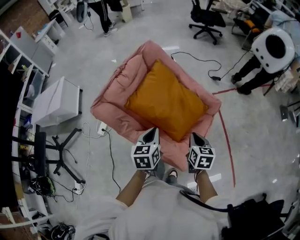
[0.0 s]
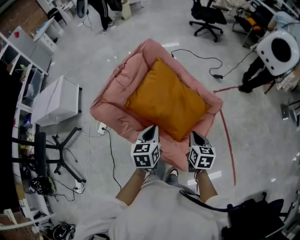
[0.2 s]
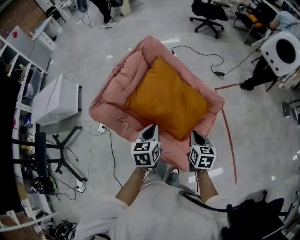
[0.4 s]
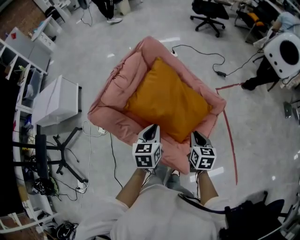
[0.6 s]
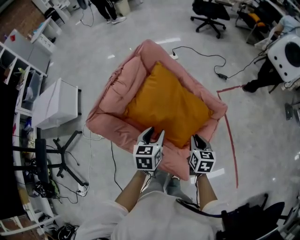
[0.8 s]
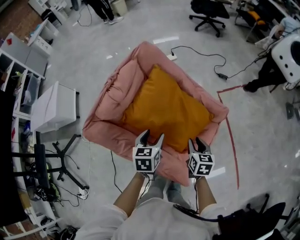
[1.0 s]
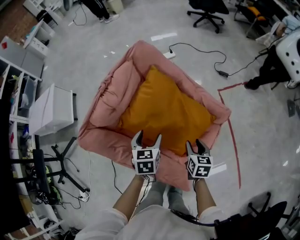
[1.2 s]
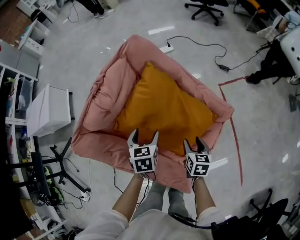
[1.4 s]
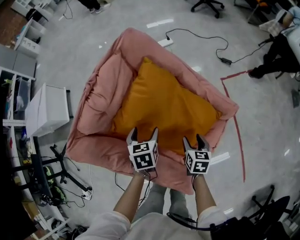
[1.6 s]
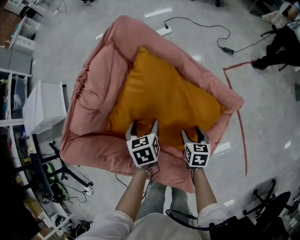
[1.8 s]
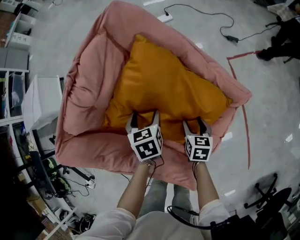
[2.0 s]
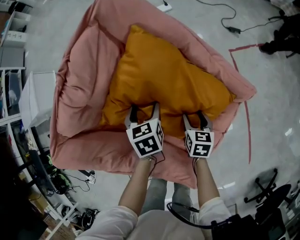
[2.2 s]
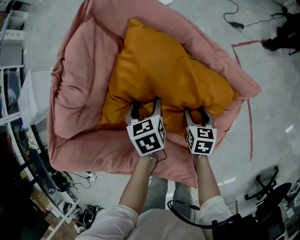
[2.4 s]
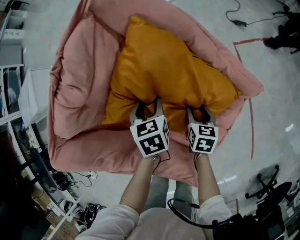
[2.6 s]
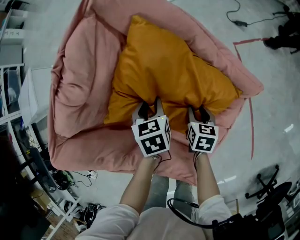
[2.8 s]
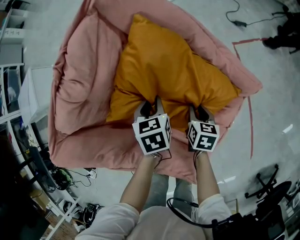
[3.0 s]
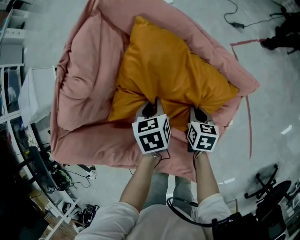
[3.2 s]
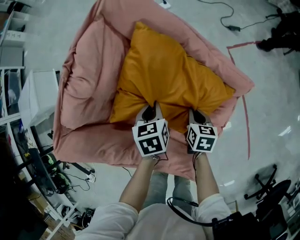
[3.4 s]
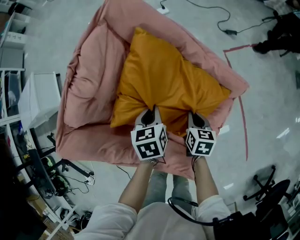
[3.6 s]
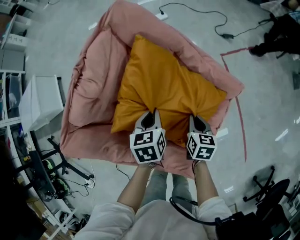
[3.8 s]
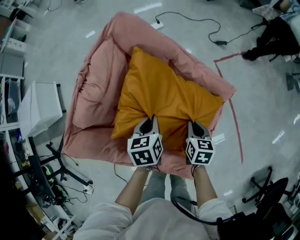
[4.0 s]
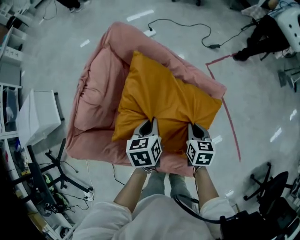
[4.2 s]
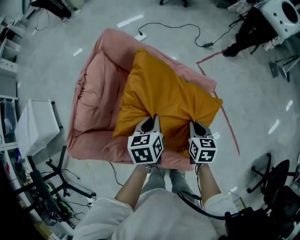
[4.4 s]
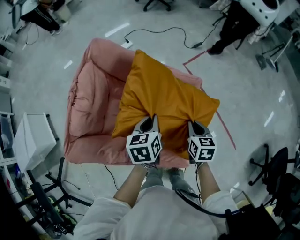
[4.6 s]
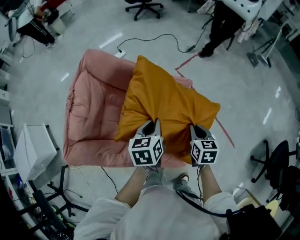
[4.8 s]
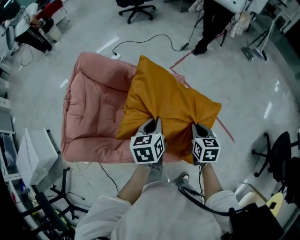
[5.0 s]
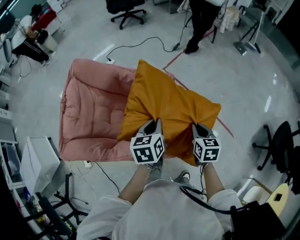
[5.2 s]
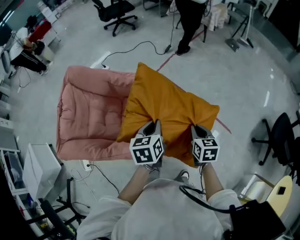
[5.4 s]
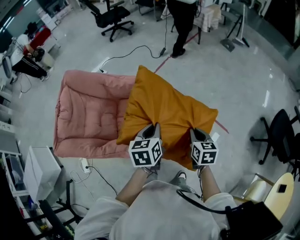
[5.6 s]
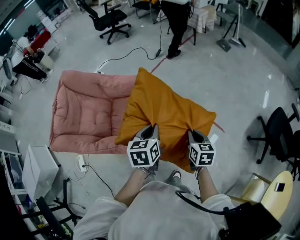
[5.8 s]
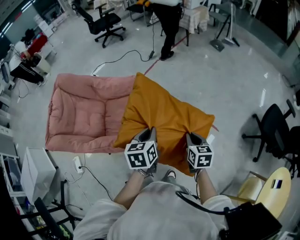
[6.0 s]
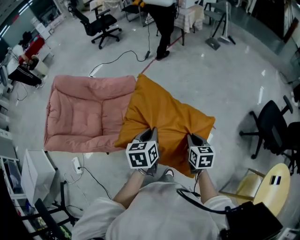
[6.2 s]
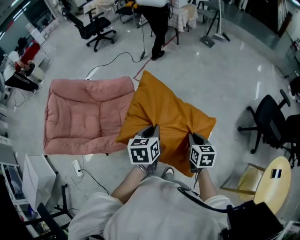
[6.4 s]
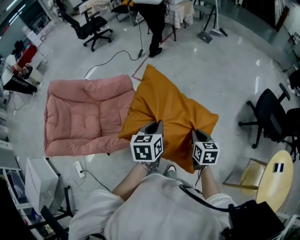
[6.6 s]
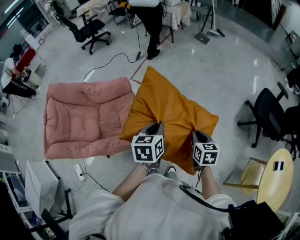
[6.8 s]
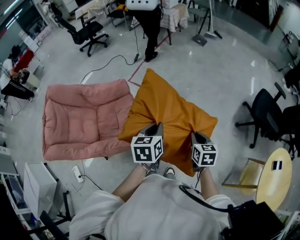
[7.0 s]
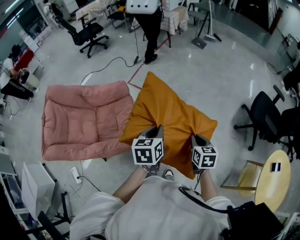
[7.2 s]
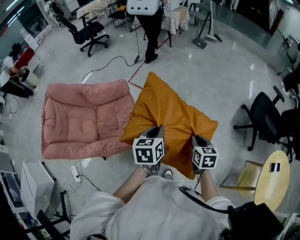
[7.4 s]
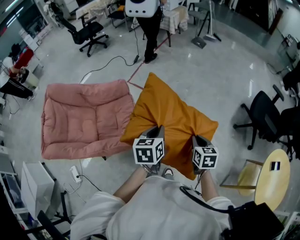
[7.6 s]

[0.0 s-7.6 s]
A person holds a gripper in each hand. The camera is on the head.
0.0 to 1.6 s: The left gripper heads forward and downward, covering about 25 cm, rotates roughly 20 degrees, and opens up, while the right gripper moves downward and forward, about 25 cm, and opens.
1.6 to 3.0 s: The grippers both shift downward and forward by about 10 cm. The right gripper closes its fingers, while the left gripper closes up.
3.0 to 4.6 s: The two grippers go about 20 cm upward. The left gripper changes its angle by roughly 30 degrees.
4.6 to 6.0 s: Both grippers are carried to the right and backward, approximately 40 cm. The left gripper turns by roughly 20 degrees.
6.0 to 7.6 s: The left gripper heads to the right, covering about 10 cm. The right gripper goes approximately 10 cm to the right and backward.

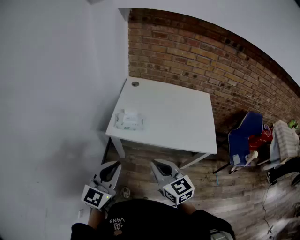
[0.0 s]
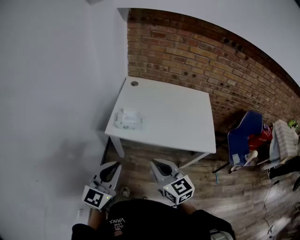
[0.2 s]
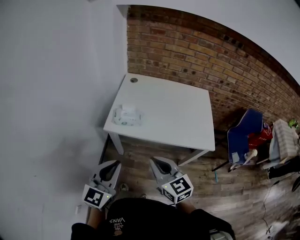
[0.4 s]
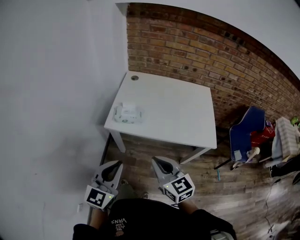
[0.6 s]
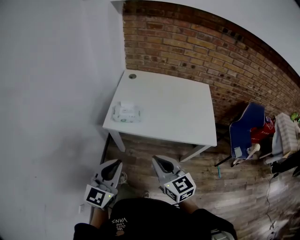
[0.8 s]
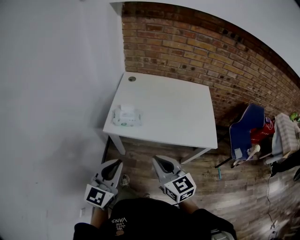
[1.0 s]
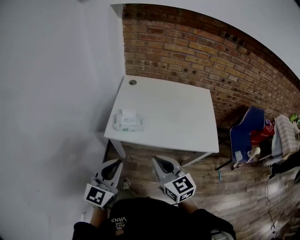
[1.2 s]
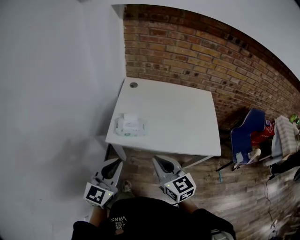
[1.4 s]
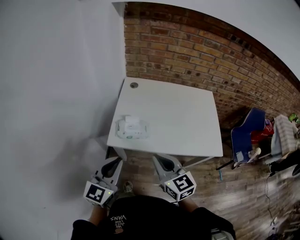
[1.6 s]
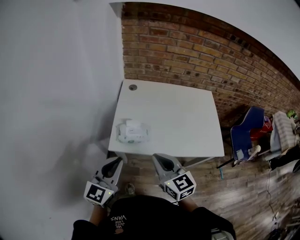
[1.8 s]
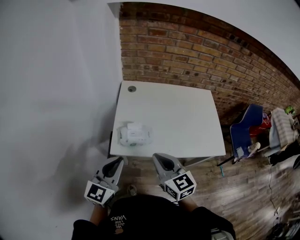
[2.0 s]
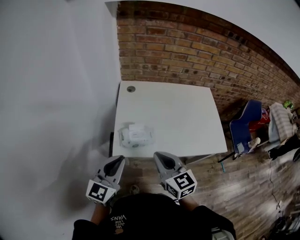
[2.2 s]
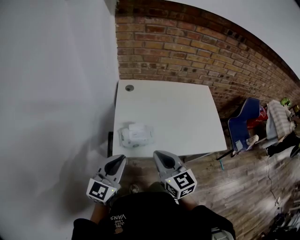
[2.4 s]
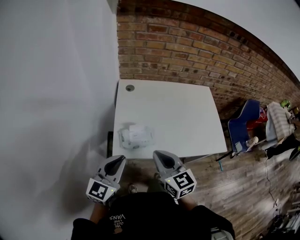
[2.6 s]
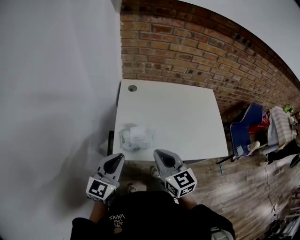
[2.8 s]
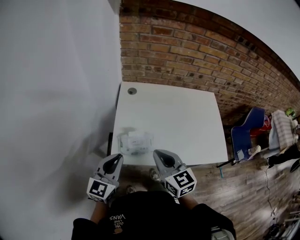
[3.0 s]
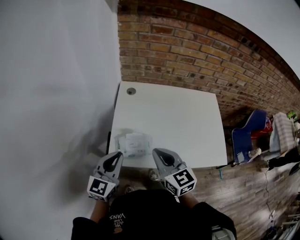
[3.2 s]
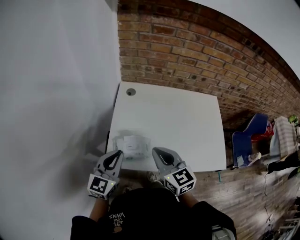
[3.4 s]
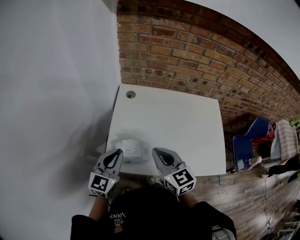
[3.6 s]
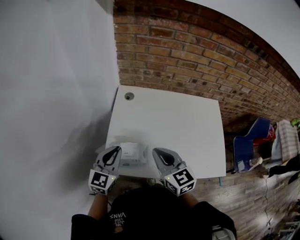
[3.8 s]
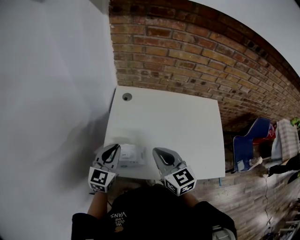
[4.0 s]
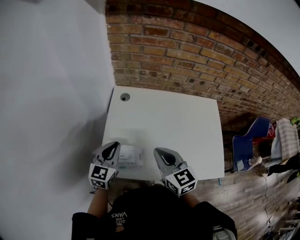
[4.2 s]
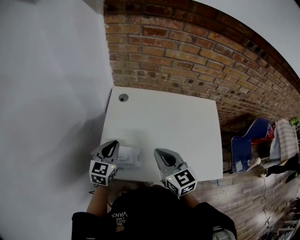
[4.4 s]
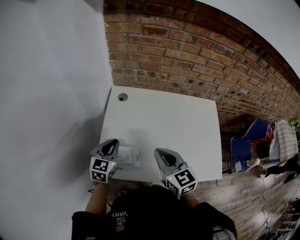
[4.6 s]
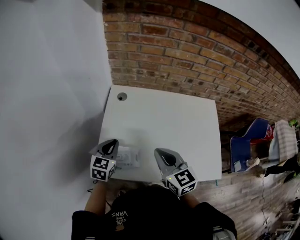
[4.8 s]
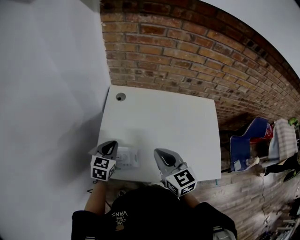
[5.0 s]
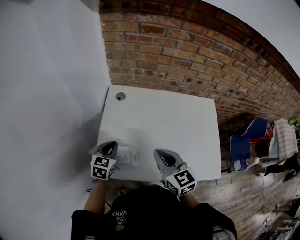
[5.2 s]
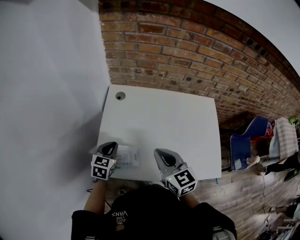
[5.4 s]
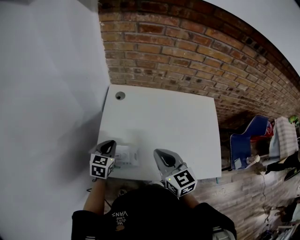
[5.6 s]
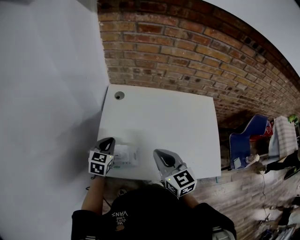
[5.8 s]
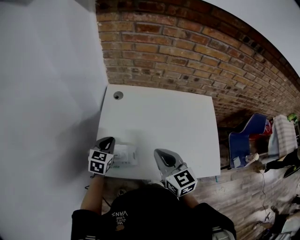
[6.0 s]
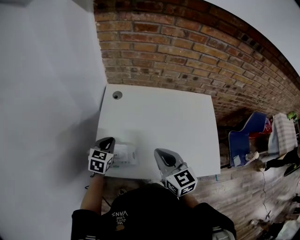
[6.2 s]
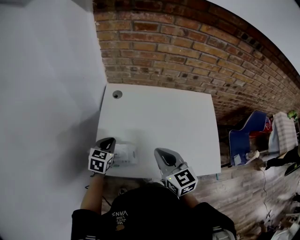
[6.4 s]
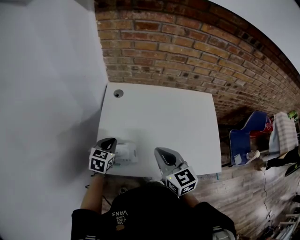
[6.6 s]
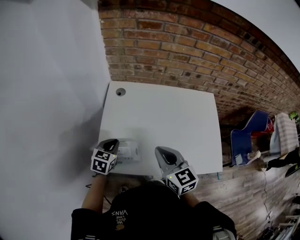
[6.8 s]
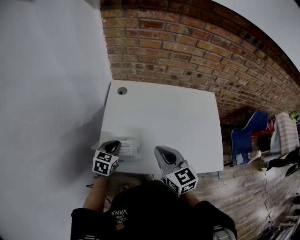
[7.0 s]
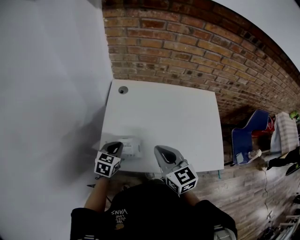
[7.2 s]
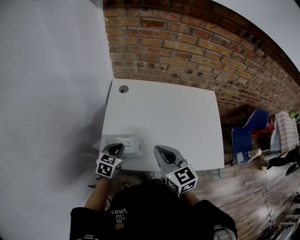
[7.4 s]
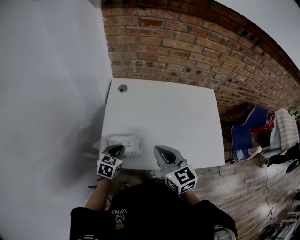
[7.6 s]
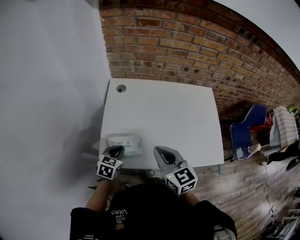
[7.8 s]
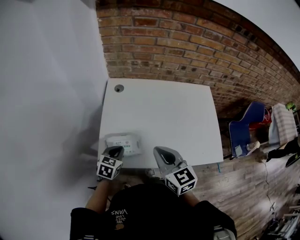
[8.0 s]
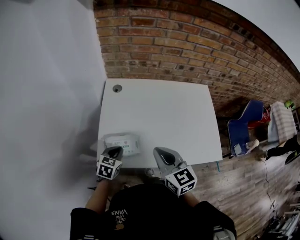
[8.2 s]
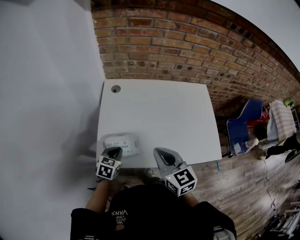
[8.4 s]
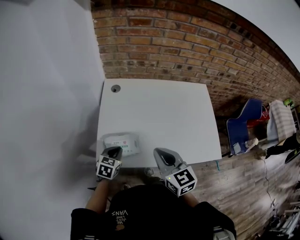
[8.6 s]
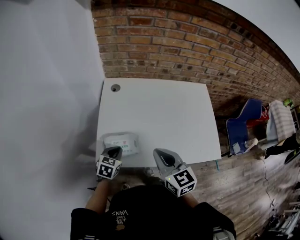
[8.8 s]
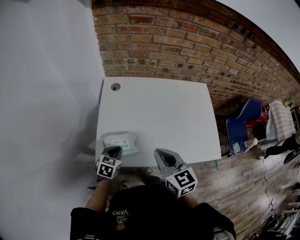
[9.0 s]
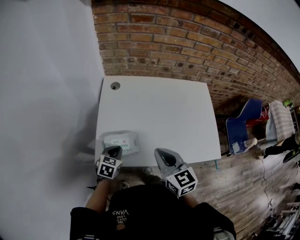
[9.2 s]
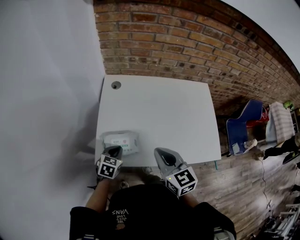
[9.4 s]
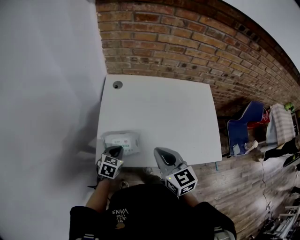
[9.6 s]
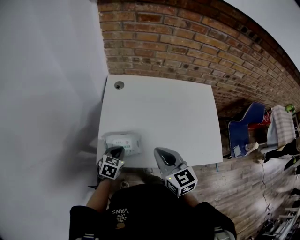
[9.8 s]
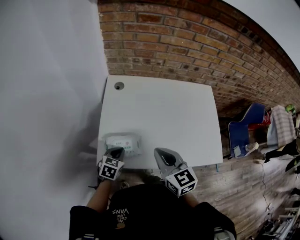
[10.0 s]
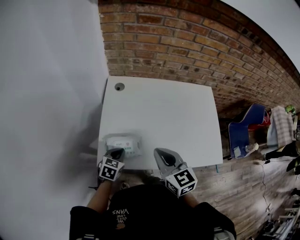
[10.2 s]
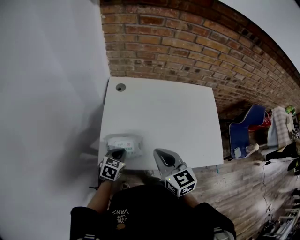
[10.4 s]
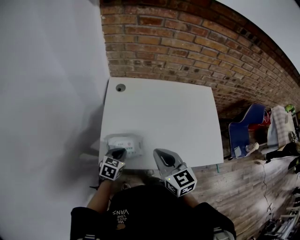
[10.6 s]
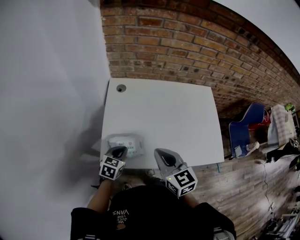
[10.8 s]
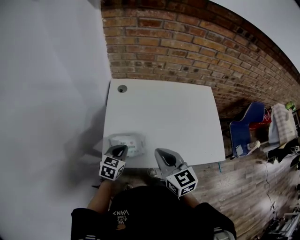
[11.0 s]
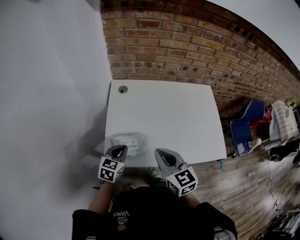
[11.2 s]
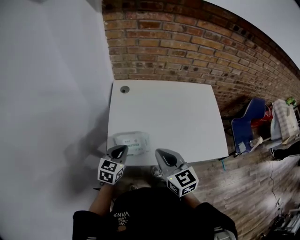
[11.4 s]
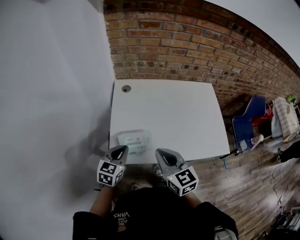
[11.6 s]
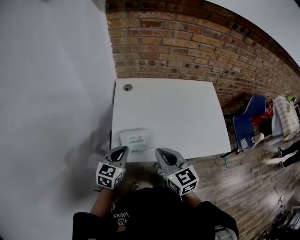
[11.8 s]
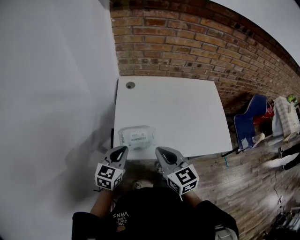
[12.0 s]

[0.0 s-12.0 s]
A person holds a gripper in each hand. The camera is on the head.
0.0 to 1.6 s: The two grippers go about 10 cm forward.
1.6 to 3.0 s: The left gripper goes roughly 15 cm forward and to the left; the right gripper heads forward, covering some 15 cm.
3.0 to 4.4 s: The left gripper shifts some 20 cm forward and downward. The right gripper moves forward and to the right, approximately 15 cm.
4.4 to 6.0 s: The left gripper is displaced downward by about 5 cm.
6.0 to 7.6 s: The right gripper changes place by some 5 cm. Meanwhile the left gripper heads backward, covering about 10 cm.
7.6 to 10.4 s: The grippers make only small movements.
10.4 to 12.0 s: The left gripper travels upward, to the left and backward by about 15 cm, and rotates about 20 degrees. The right gripper shifts roughly 10 cm backward and to the left.

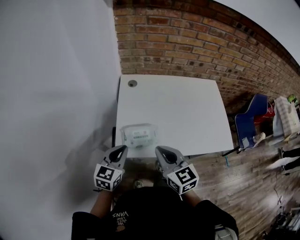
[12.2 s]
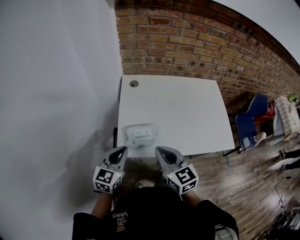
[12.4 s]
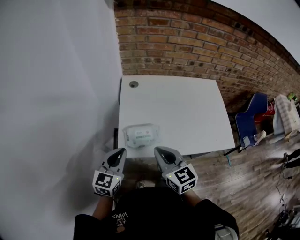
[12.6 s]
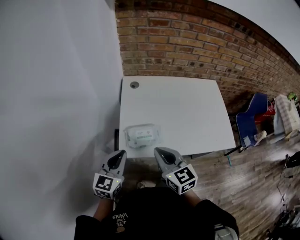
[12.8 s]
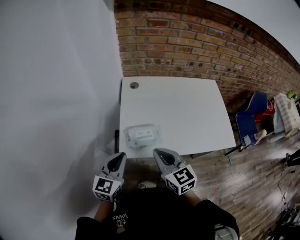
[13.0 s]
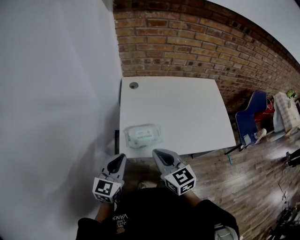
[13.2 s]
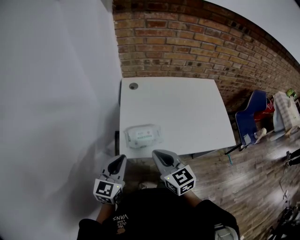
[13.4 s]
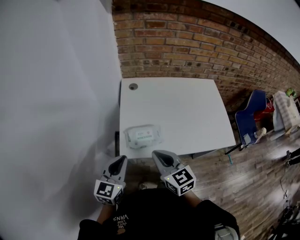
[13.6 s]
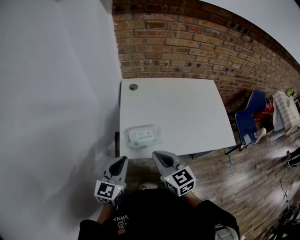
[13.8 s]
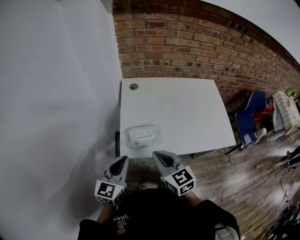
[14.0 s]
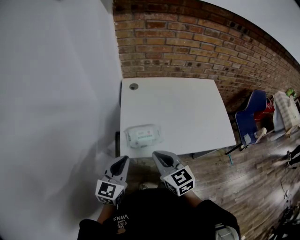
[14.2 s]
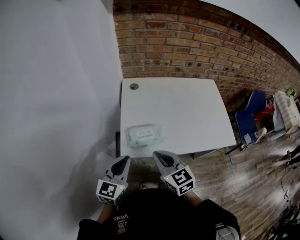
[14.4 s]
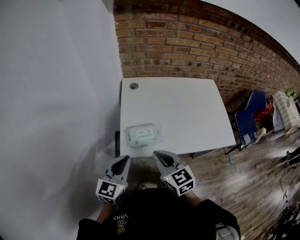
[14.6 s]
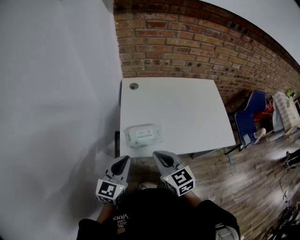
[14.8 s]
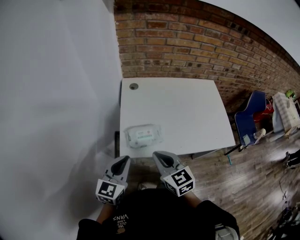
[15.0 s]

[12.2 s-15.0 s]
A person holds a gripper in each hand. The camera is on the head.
12.2 to 13.6 s: The left gripper is displaced backward by about 5 cm.
13.6 to 15.0 s: Both grippers stay put.

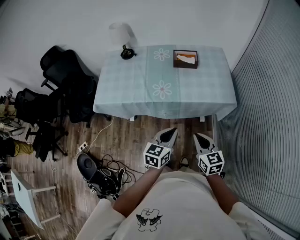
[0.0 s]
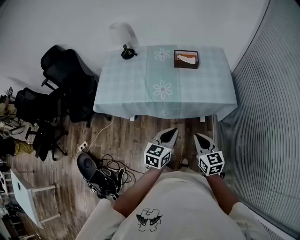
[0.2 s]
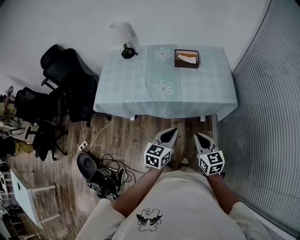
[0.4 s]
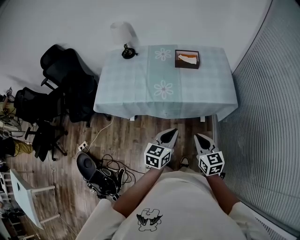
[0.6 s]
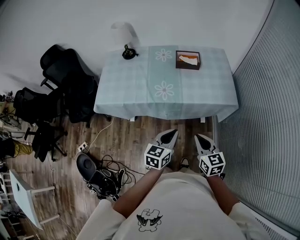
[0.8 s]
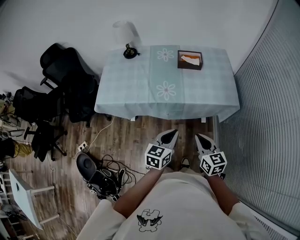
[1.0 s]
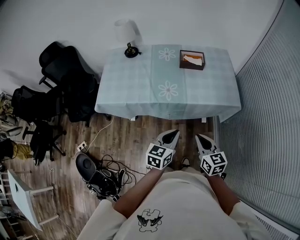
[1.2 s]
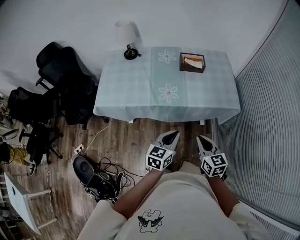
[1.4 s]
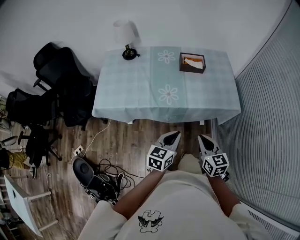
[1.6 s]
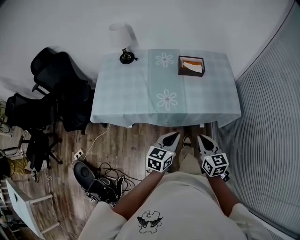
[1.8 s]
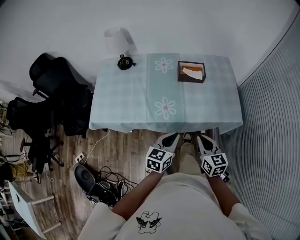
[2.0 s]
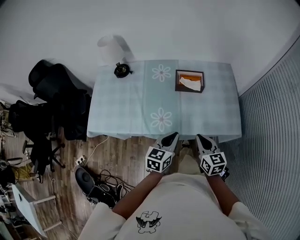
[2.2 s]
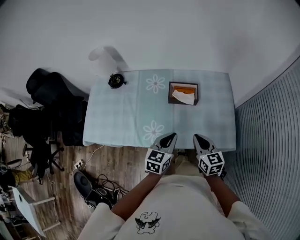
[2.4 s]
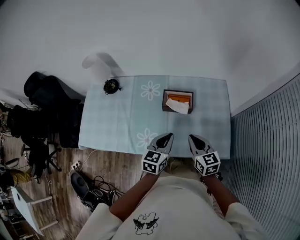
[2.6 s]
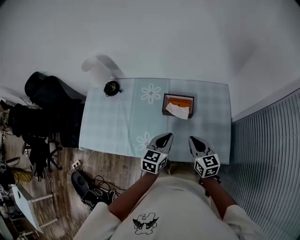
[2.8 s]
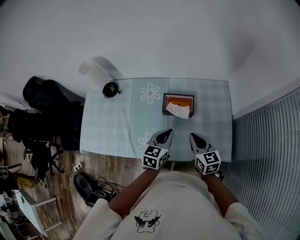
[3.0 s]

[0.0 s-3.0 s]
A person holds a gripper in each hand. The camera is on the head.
0.0 to 1.6 s: The two grippers go roughly 5 cm to the left.
1.6 to 3.0 s: The two grippers travel together, forward, approximately 40 cm.
